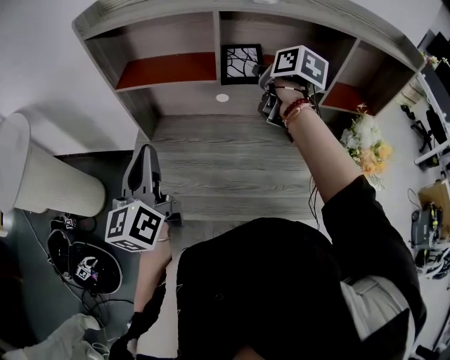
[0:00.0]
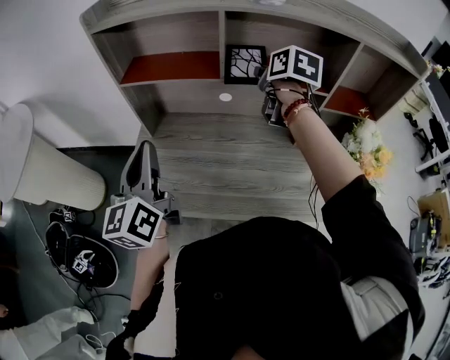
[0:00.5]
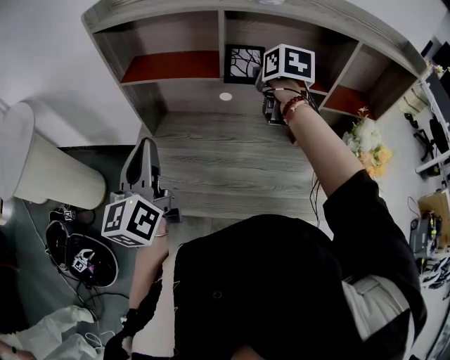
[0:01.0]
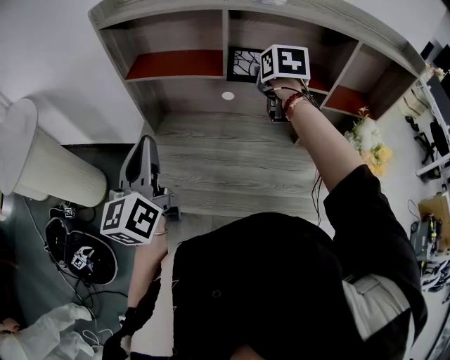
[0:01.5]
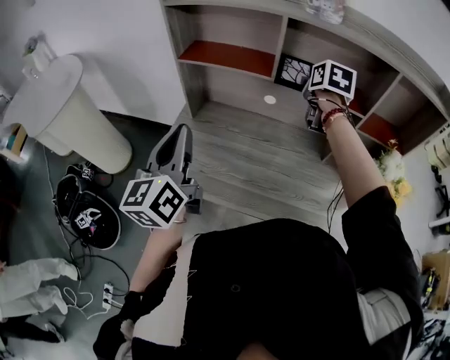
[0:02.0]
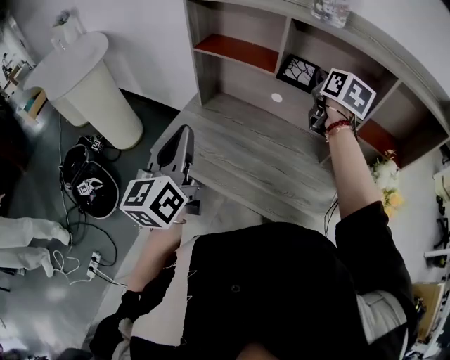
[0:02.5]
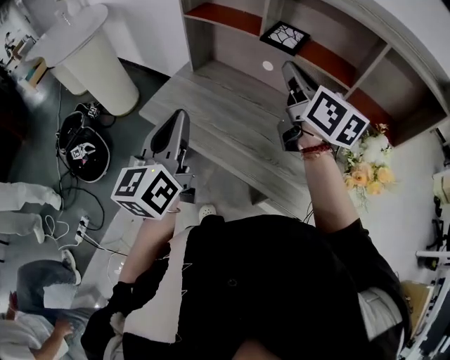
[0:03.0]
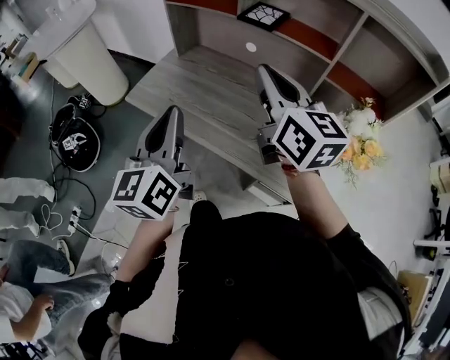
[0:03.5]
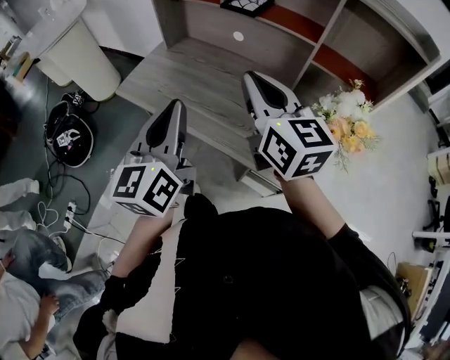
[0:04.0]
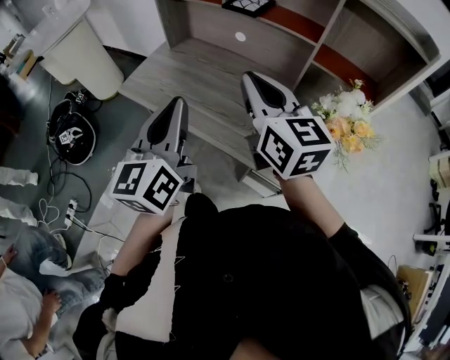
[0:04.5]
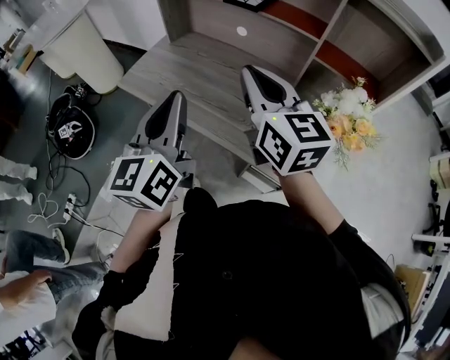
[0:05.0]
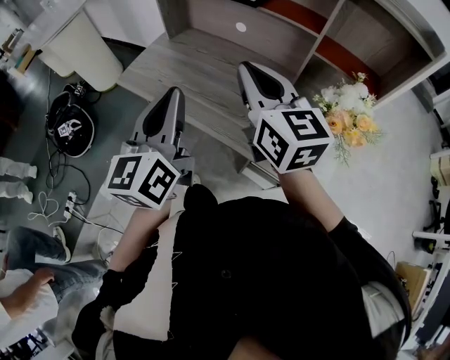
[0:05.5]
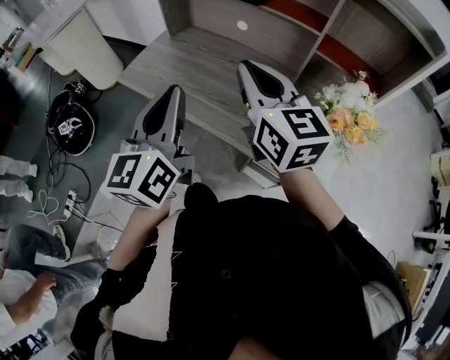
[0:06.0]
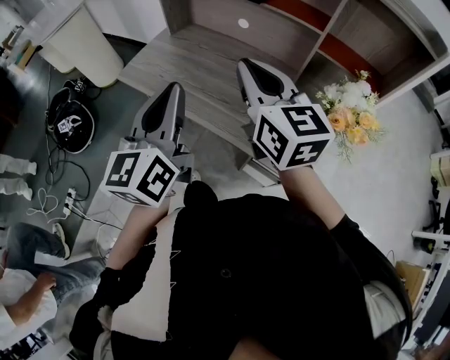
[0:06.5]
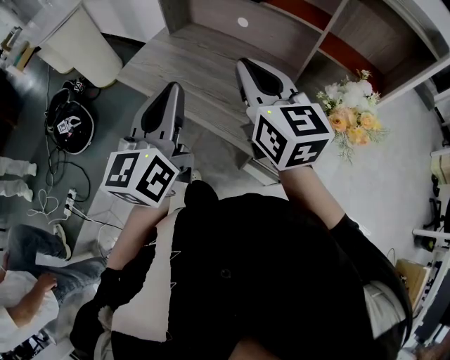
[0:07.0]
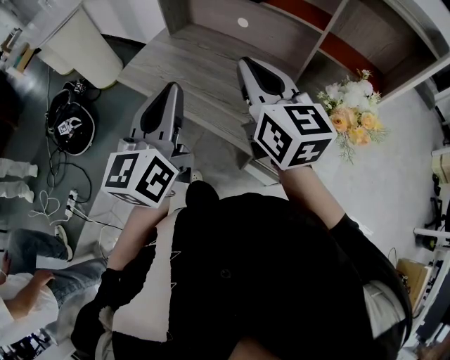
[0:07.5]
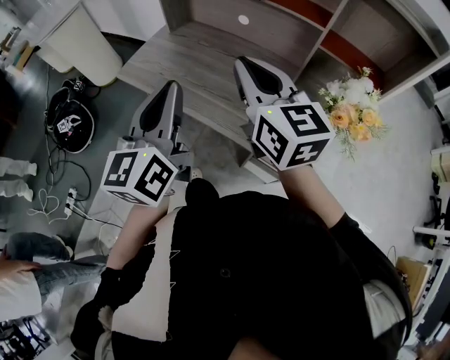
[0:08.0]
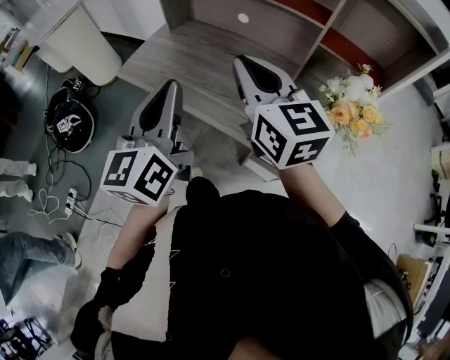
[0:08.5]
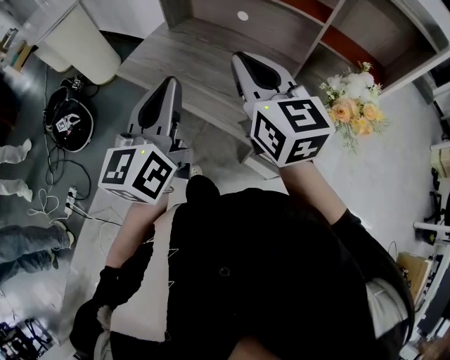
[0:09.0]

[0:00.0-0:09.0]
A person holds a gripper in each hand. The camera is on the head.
0:00.0 to 0:02.0: The left gripper travels backward by about 5 cm. Meanwhile the right gripper turns by roughly 20 degrees.
0:02.0 to 0:04.5: The left gripper moves about 30 cm. The right gripper ends up some 30 cm from where it was, tips its fingers upward by some 30 degrees, and closes its fingers.
0:04.5 to 0:09.0: The grippers make only small movements.

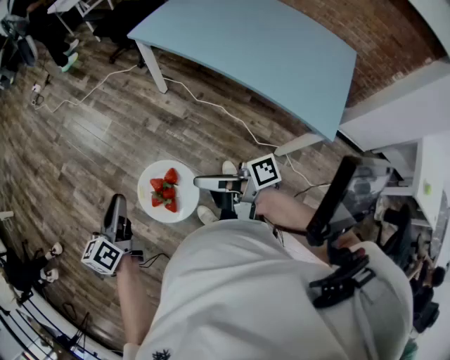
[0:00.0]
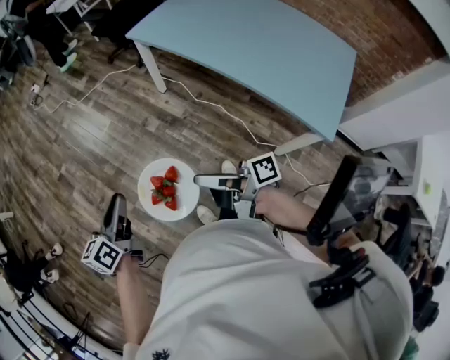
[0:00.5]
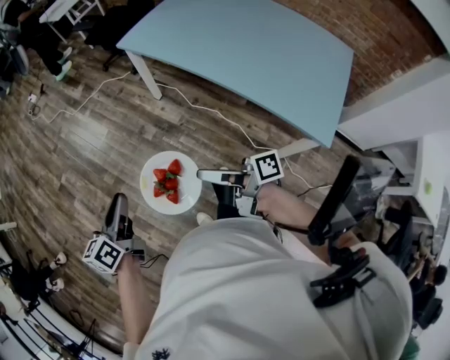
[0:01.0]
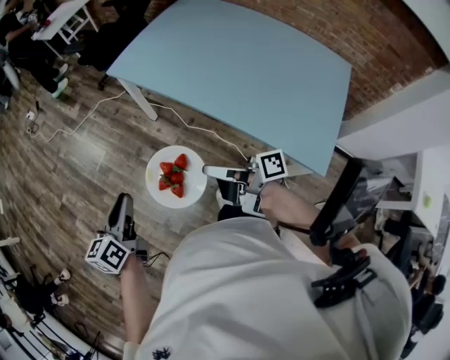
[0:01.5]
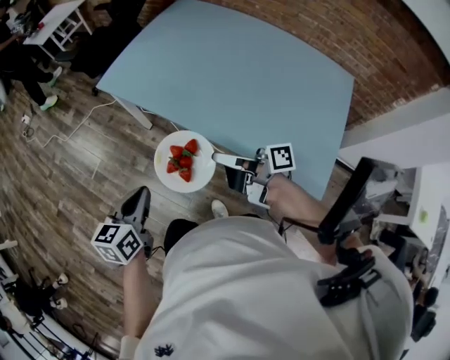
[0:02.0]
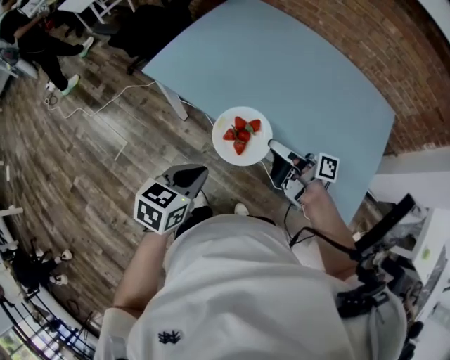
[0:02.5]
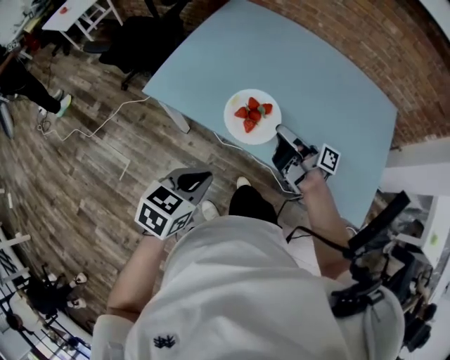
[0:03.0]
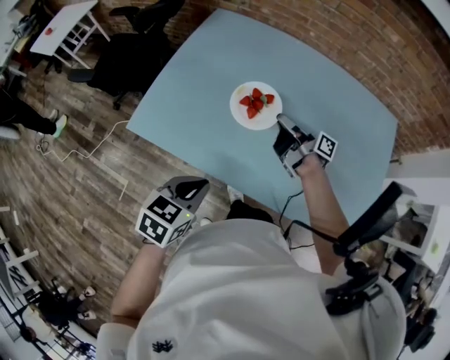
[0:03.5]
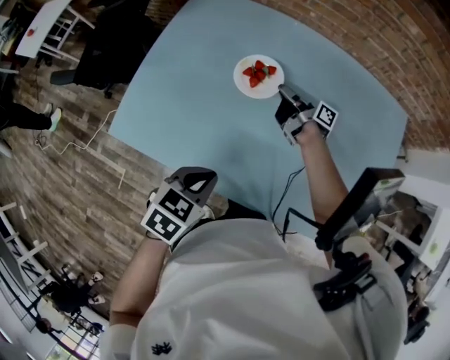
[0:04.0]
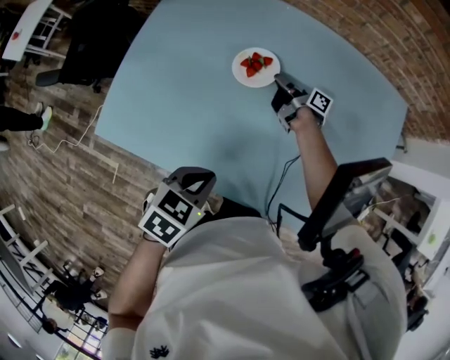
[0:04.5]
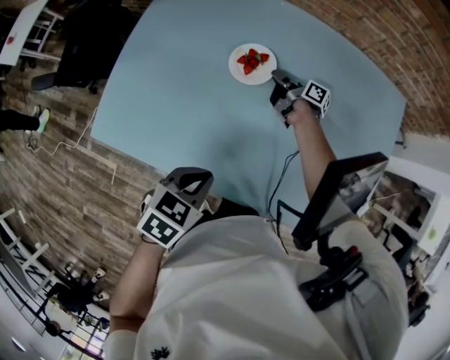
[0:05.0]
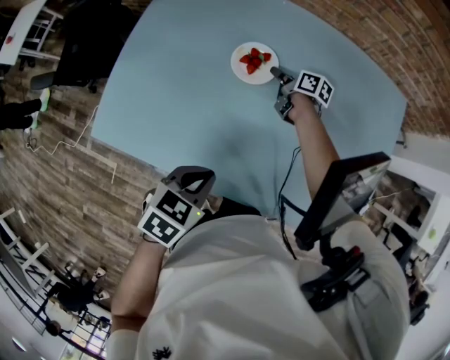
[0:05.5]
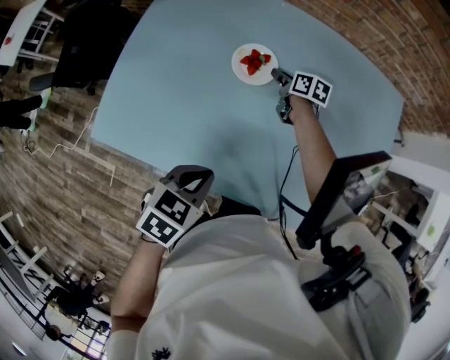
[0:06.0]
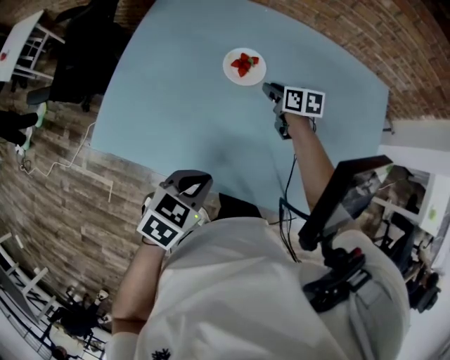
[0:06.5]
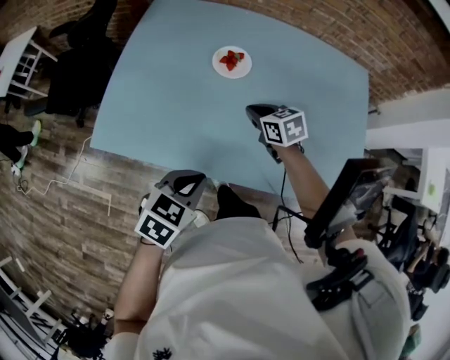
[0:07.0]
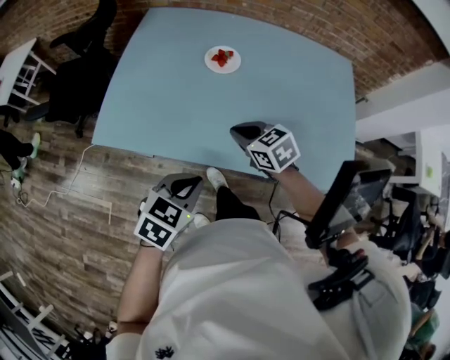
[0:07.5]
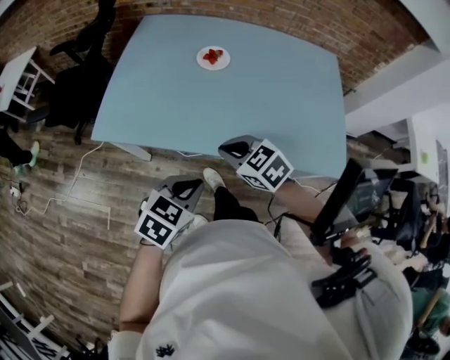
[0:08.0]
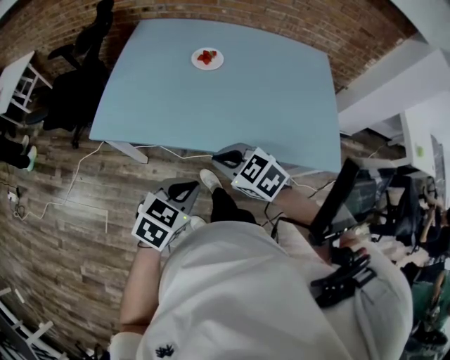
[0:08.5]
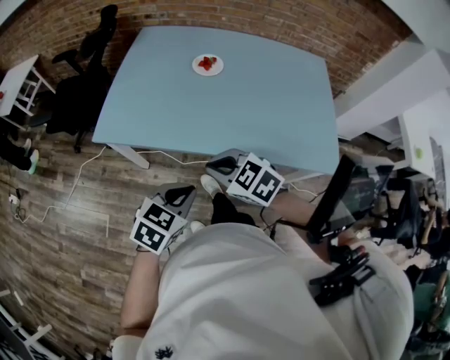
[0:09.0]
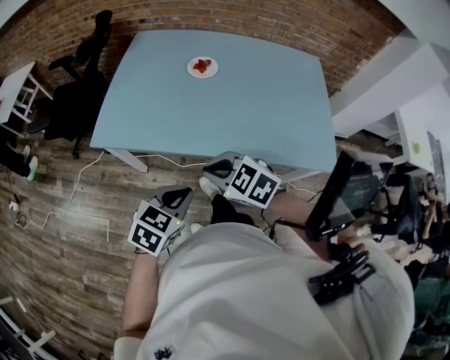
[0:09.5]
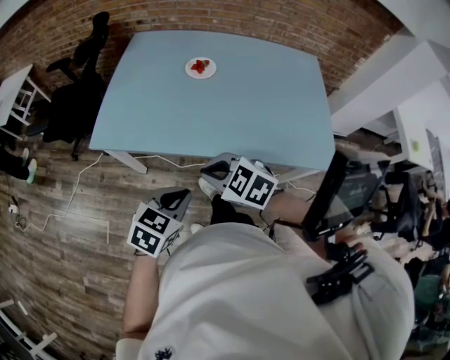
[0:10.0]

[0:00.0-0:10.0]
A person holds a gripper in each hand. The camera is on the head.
0:00.0 to 0:02.0: Both grippers travel together to the right and forward, approximately 35 cm. The left gripper rotates about 30 degrees.
0:02.0 to 0:04.0: The left gripper shifts by approximately 35 cm, and swivels some 50 degrees. The right gripper shifts by some 50 cm, and turns by about 40 degrees.
0:04.0 to 0:06.0: The right gripper moves downward, roughly 5 cm, points its fingers approximately 30 degrees further downward, and opens its fingers.
0:06.0 to 0:08.0: The left gripper heads backward, covering roughly 20 cm, while the right gripper goes about 50 cm backward, rotates around the line of its fingers by some 50 degrees, counterclockwise from behind, and closes its fingers.
0:08.0 to 0:10.0: The right gripper moves backward, roughly 10 cm.

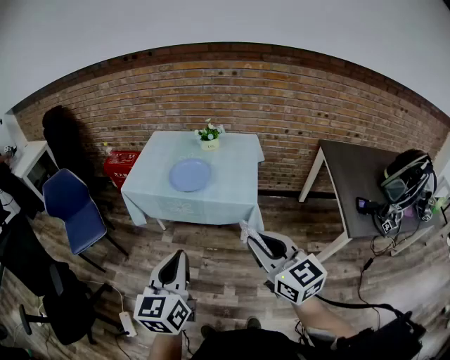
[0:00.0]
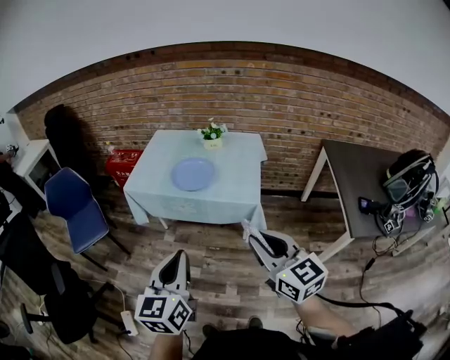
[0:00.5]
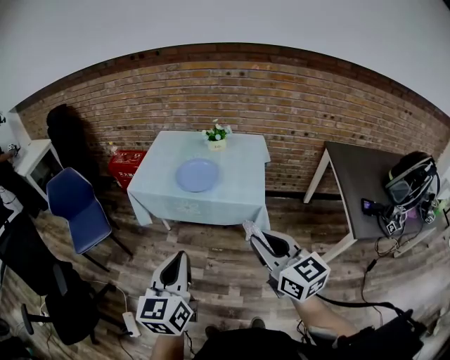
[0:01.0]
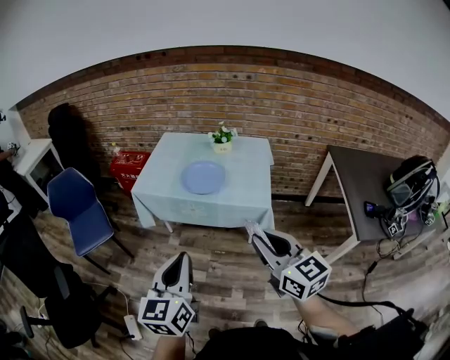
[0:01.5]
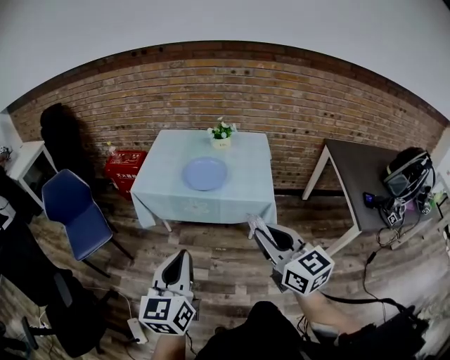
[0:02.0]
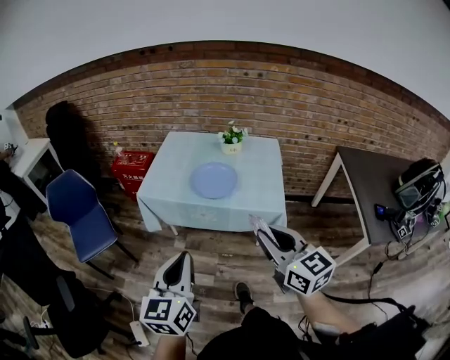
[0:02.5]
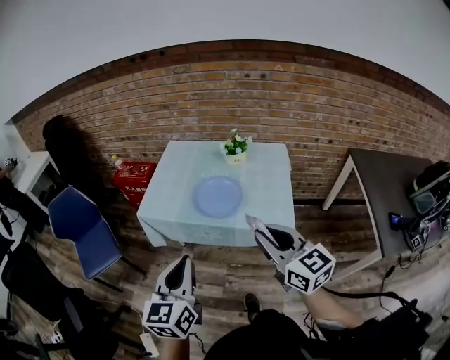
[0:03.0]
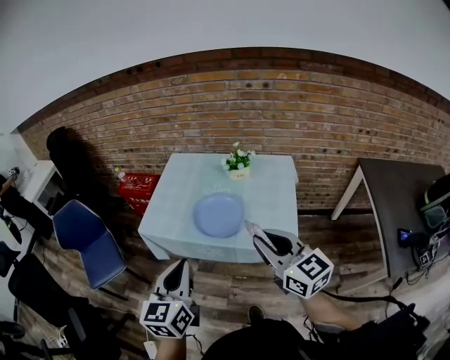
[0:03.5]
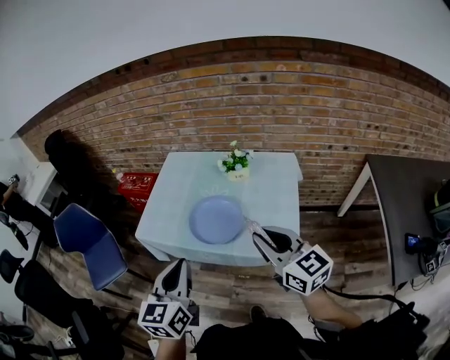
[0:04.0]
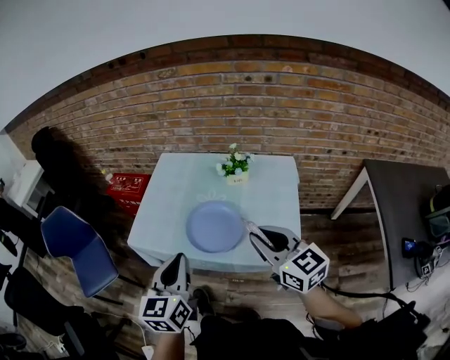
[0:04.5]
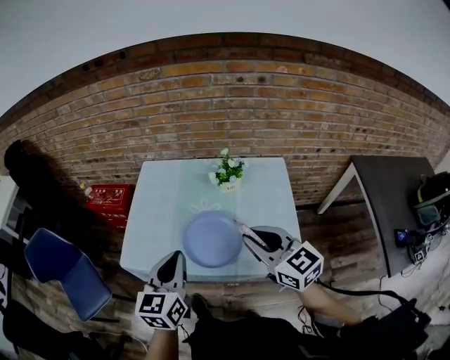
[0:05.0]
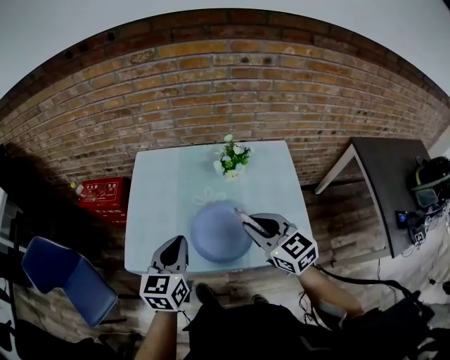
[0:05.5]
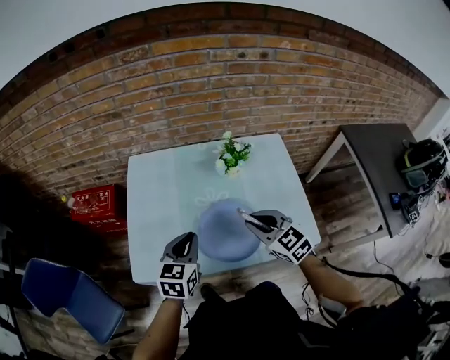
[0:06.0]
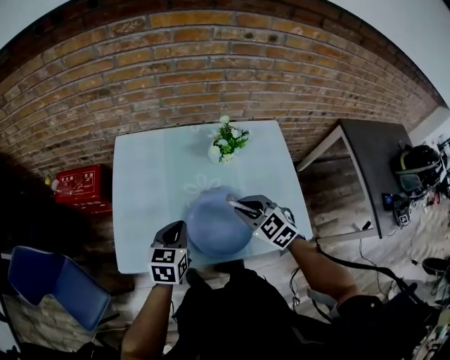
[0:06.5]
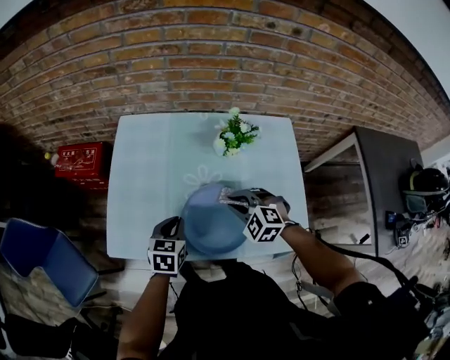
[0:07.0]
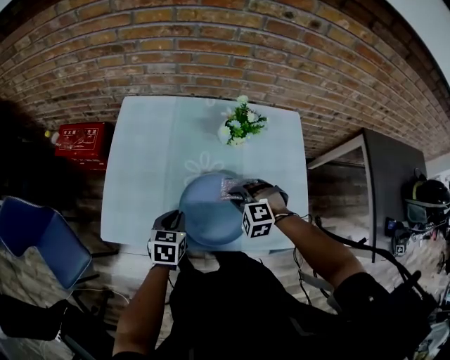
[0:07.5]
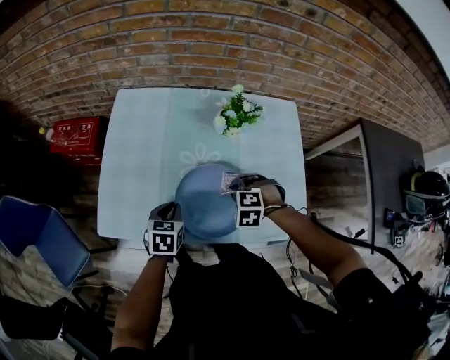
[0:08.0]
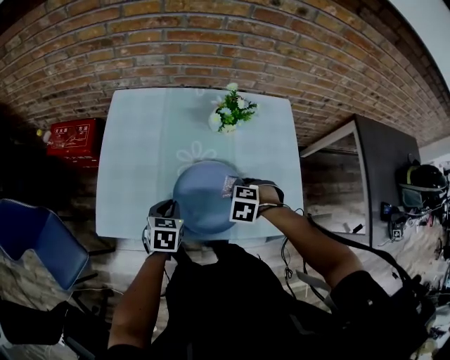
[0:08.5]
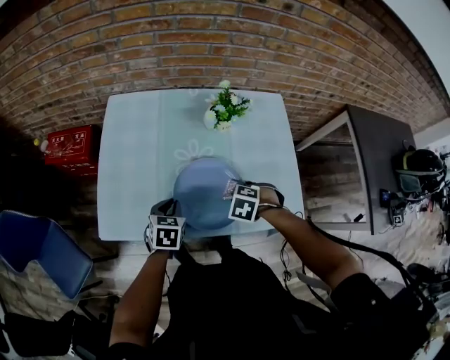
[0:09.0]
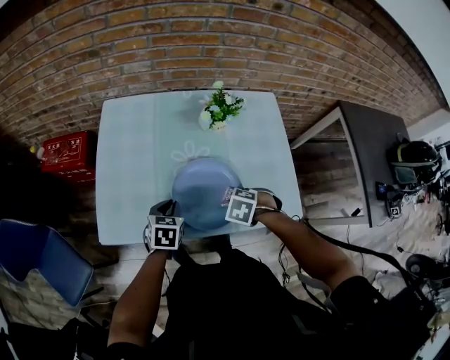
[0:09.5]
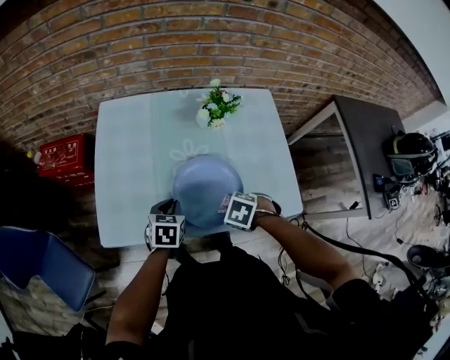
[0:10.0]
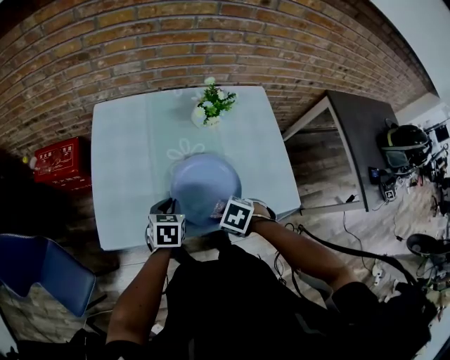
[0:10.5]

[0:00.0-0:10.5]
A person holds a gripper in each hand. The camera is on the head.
0:00.0 to 0:02.0: The grippers both shift to the left by approximately 10 cm.
0:02.0 to 0:04.0: The grippers both shift forward by roughly 30 cm.
0:04.0 to 0:06.5: The right gripper heads forward, downward and to the left, covering approximately 30 cm, and tilts its fingers some 40 degrees downward, while the left gripper goes about 35 cm forward and downward, and rotates some 30 degrees.
0:06.5 to 0:08.5: The two grippers go about 10 cm downward. The right gripper points its fingers about 40 degrees further downward.
0:08.5 to 0:10.5: The right gripper ends up some 15 cm from where it was, and changes its angle by some 40 degrees.
